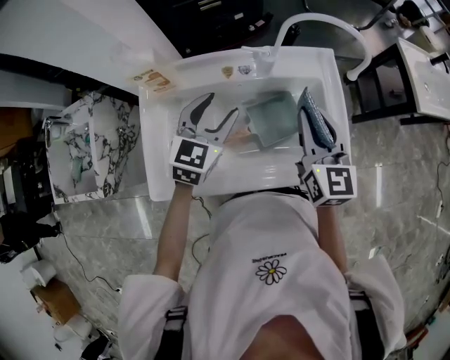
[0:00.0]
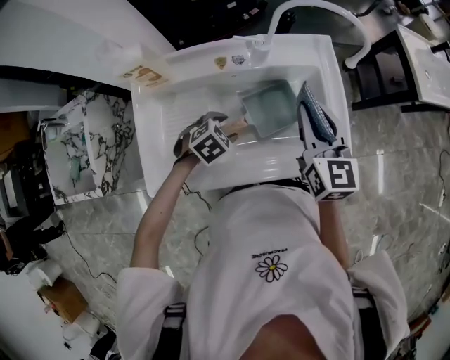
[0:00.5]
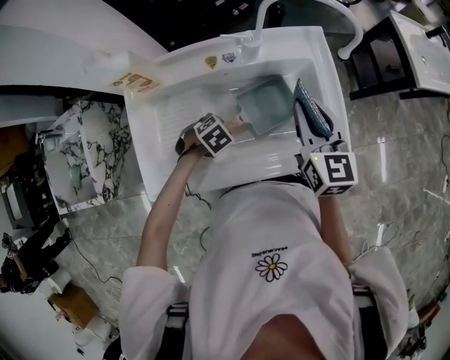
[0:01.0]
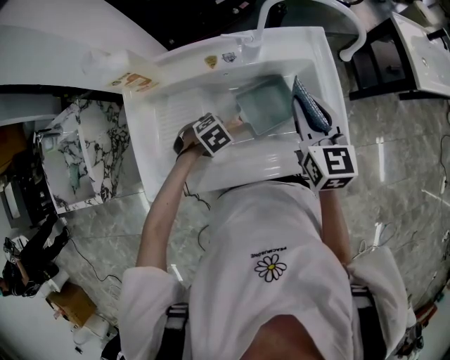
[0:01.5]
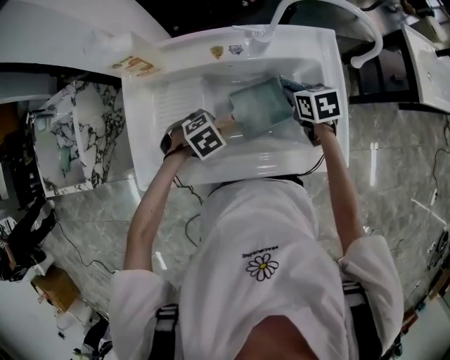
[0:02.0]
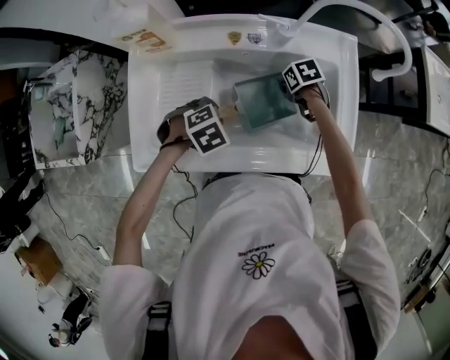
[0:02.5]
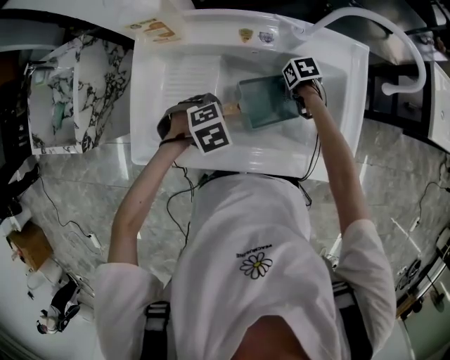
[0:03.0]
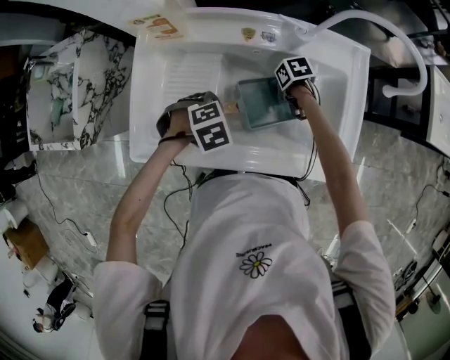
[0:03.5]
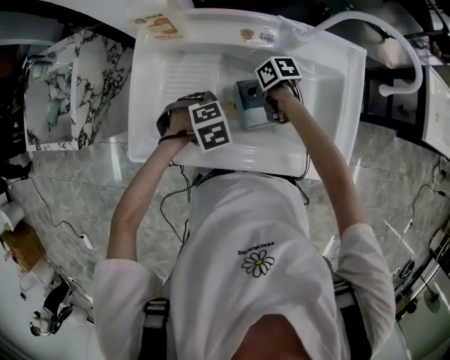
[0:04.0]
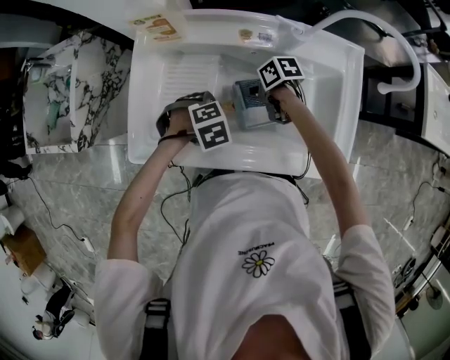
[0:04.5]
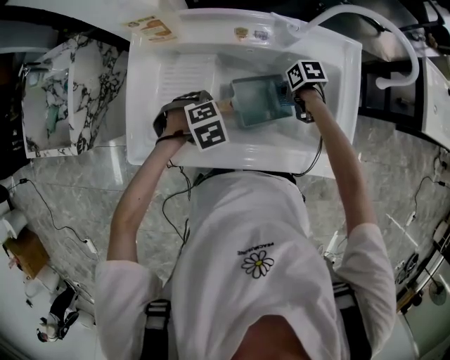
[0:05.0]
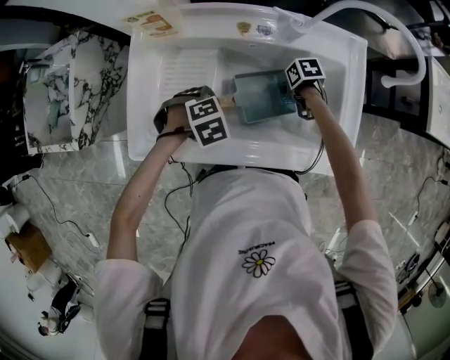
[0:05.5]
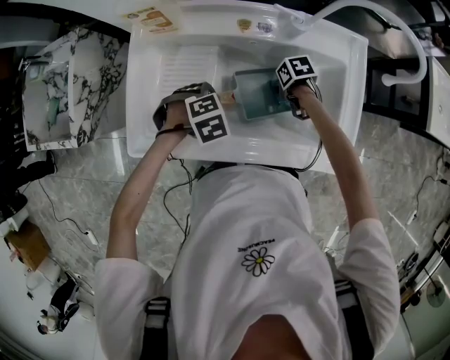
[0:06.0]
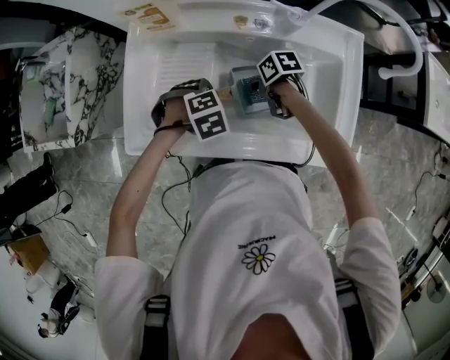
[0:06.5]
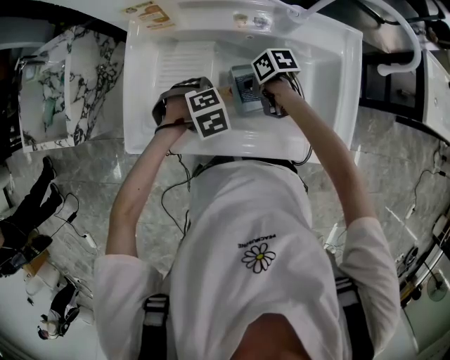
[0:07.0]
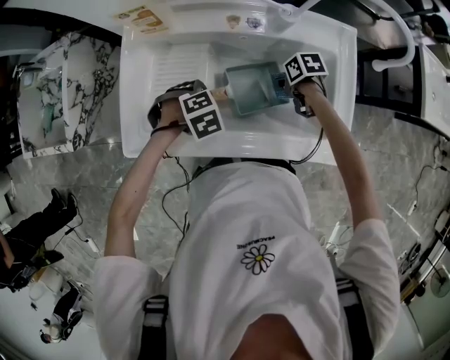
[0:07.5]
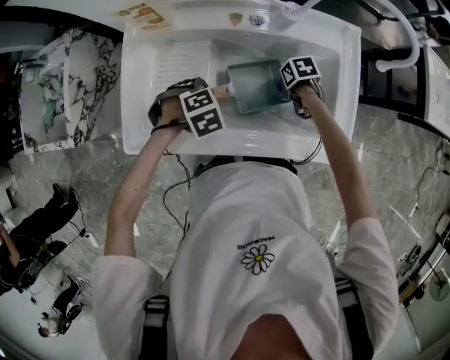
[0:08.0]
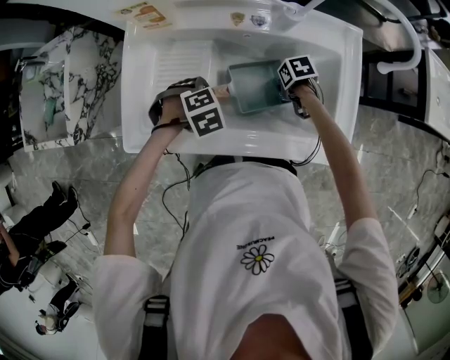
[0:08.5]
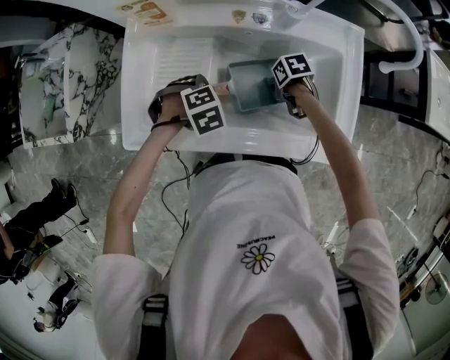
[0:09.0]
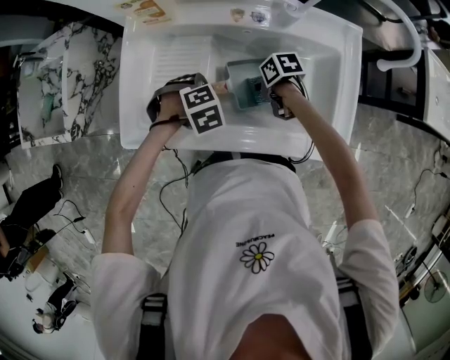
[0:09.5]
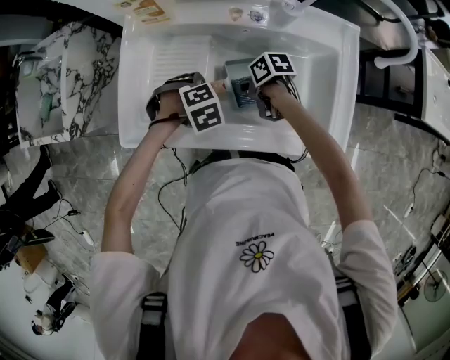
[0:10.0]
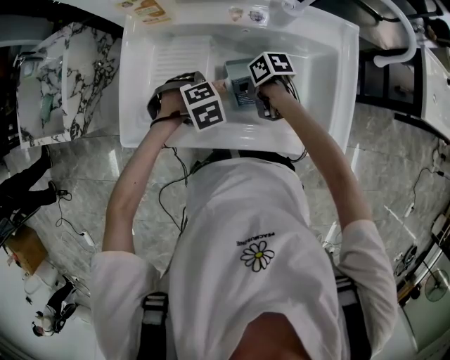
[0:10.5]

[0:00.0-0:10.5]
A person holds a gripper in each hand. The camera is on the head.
0:00.0 to 0:02.0: The two grippers go roughly 20 cm downward. The right gripper tips its fingers downward by some 50 degrees, while the left gripper tips its fingers downward by about 50 degrees, and closes its fingers.
0:02.0 to 0:04.0: The right gripper changes place by approximately 20 cm, and rotates about 40 degrees.
0:06.5 to 0:08.5: The right gripper shifts by some 15 cm, and changes its angle by some 20 degrees.
0:08.5 to 0:10.5: The right gripper moves roughly 15 cm, and changes its angle by roughly 30 degrees.

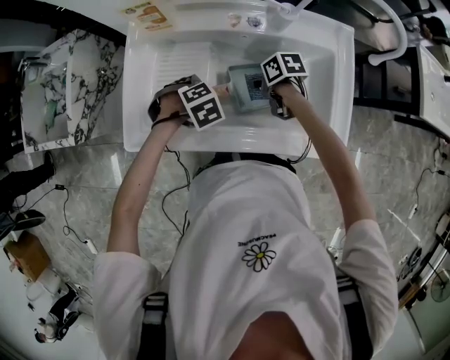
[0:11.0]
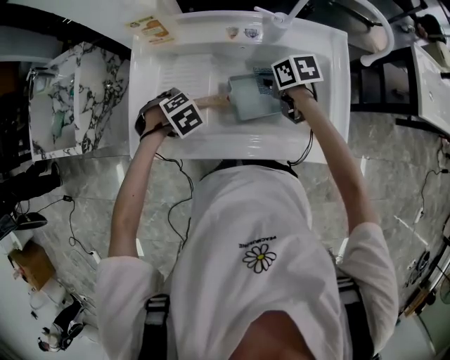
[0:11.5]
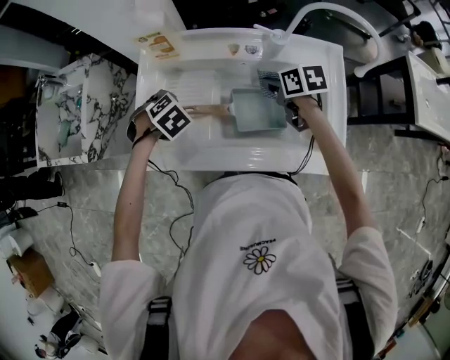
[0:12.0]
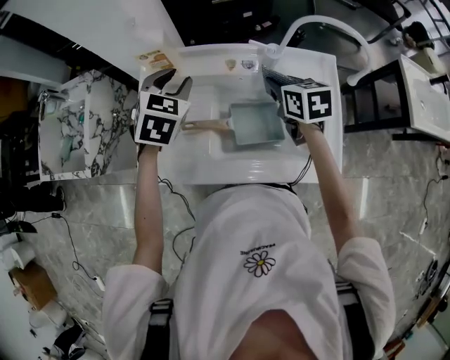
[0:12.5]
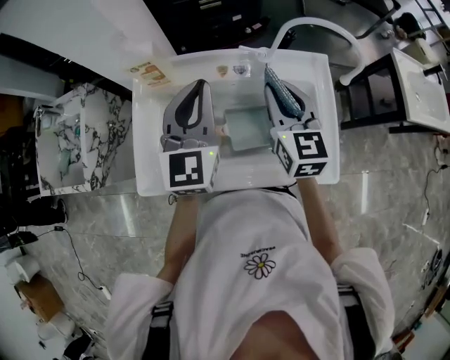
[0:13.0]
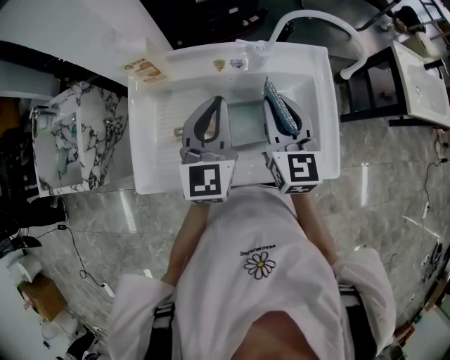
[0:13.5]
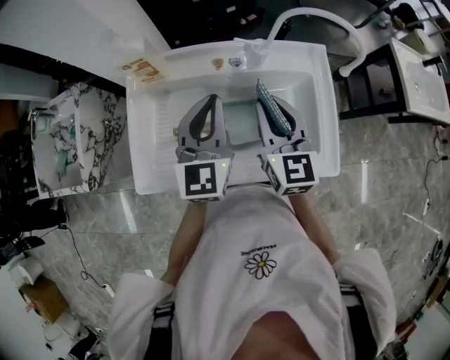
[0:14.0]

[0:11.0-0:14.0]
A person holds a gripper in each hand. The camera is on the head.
0:11.0 to 0:12.5: Both grippers travel together upward, roughly 20 cm. The left gripper points its fingers approximately 40 degrees further upward, while the right gripper swivels approximately 40 degrees.
0:12.5 to 0:14.0: The left gripper goes about 10 cm to the right and backward, points its fingers roughly 40 degrees further upward, and closes its fingers; the right gripper travels backward and upward by roughly 10 cm, and rotates roughly 30 degrees.

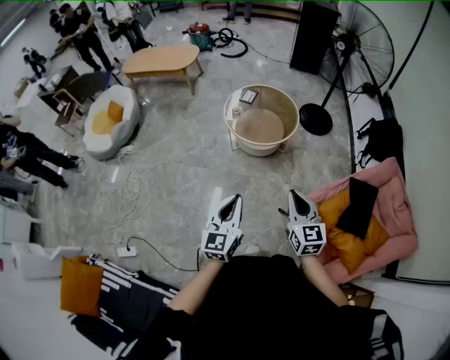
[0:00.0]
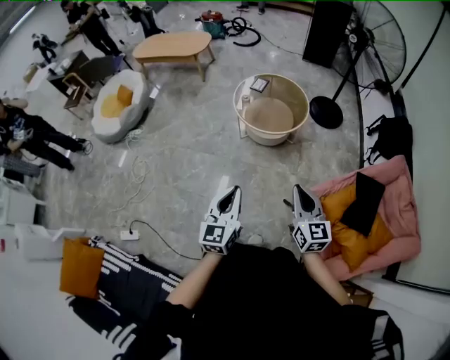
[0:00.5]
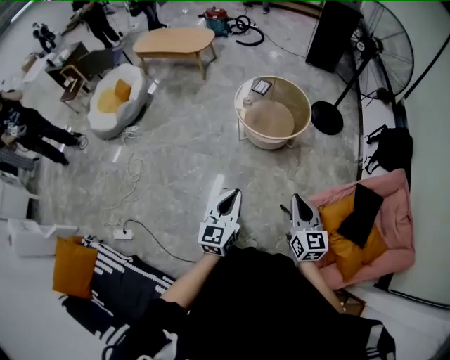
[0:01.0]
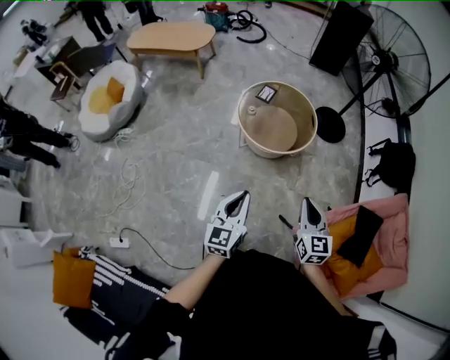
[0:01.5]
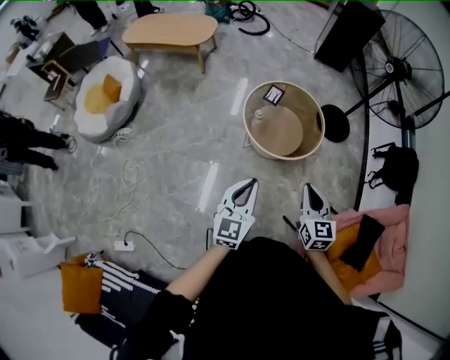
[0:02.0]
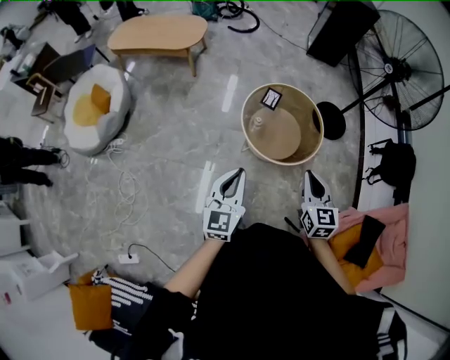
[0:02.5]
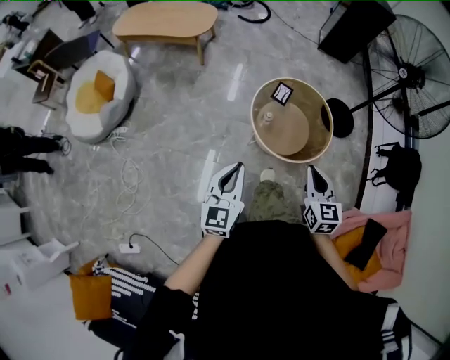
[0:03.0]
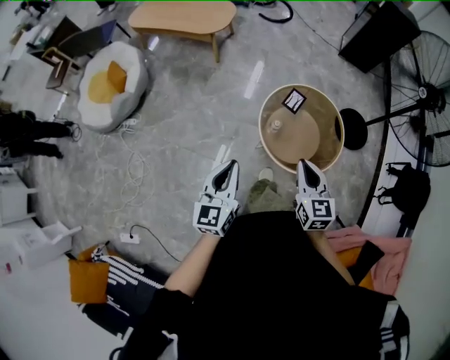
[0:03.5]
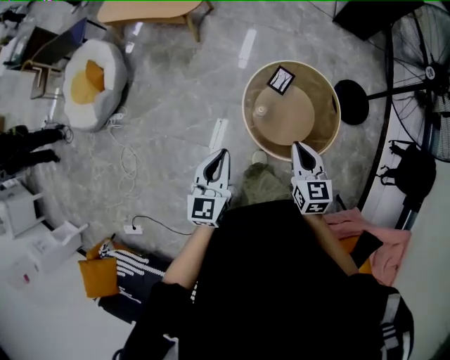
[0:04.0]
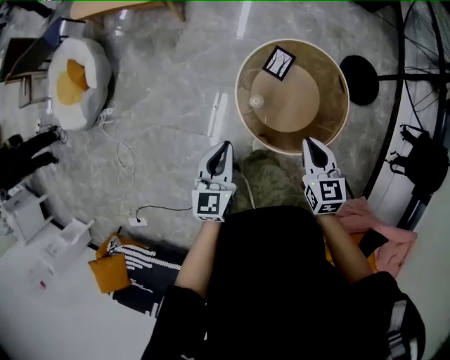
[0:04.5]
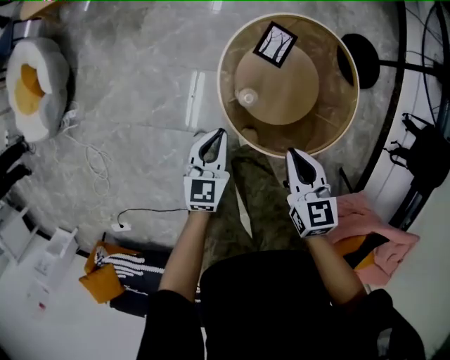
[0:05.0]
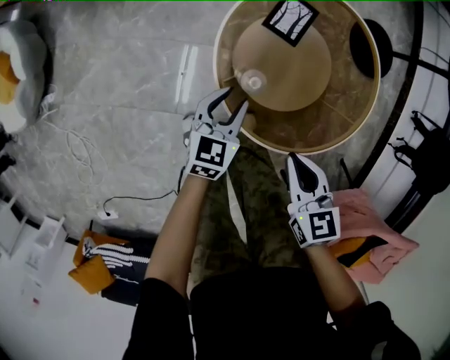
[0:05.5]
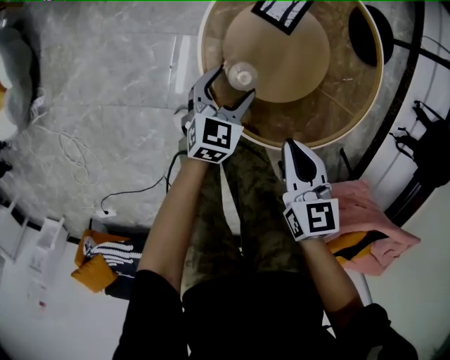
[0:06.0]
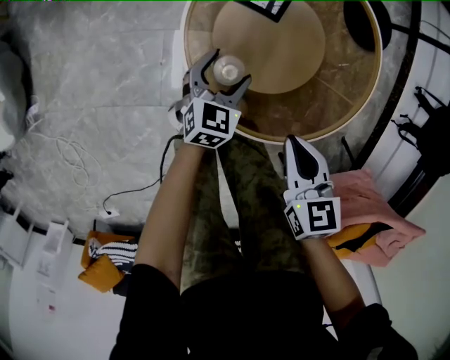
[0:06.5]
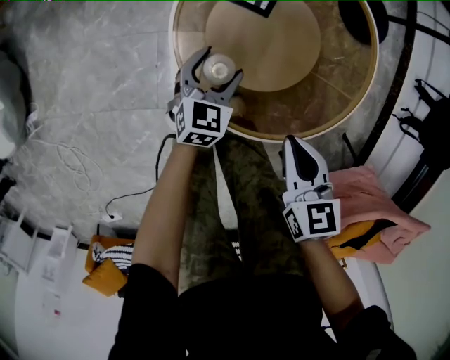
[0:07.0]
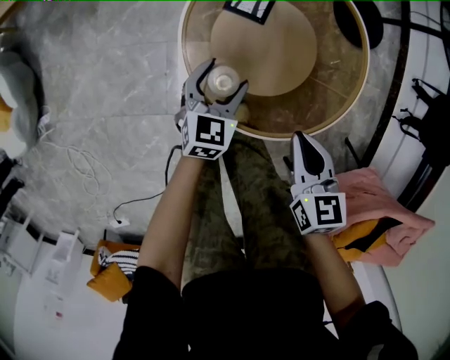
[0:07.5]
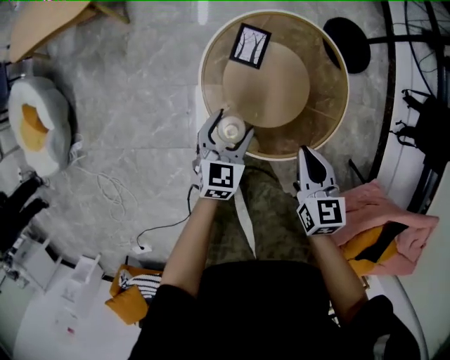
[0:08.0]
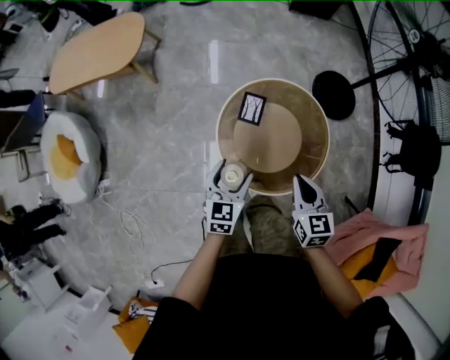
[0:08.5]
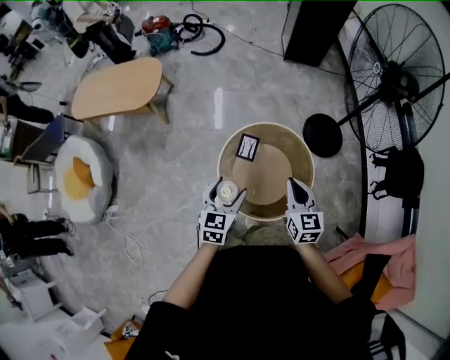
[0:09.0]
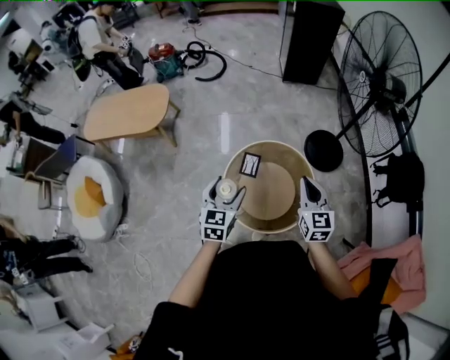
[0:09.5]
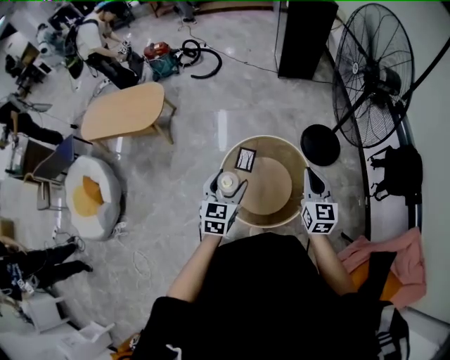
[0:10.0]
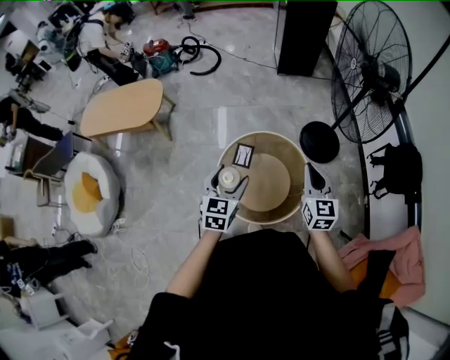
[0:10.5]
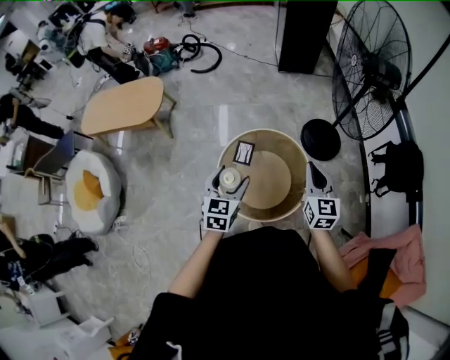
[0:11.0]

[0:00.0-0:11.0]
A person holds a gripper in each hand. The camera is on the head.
0:00.0 to 0:02.0: Both grippers travel together forward and to the left, about 35 cm.
0:02.0 to 0:03.5: Both grippers travel together forward and to the left, approximately 25 cm.
0:03.5 to 0:05.5: The grippers both shift downward and forward by approximately 60 cm. The left gripper changes its angle by approximately 40 degrees, while the right gripper rotates roughly 30 degrees.
0:05.5 to 0:07.5: The two grippers go about 5 cm to the right. The left gripper reaches approximately 10 cm downward, then returns, and opens.
0:07.5 to 0:09.0: The two grippers go roughly 50 cm upward. The right gripper swivels approximately 20 degrees.
0:09.0 to 0:11.0: The left gripper moves to the right and upward, some 10 cm; the right gripper heads to the right and upward, covering roughly 15 cm.

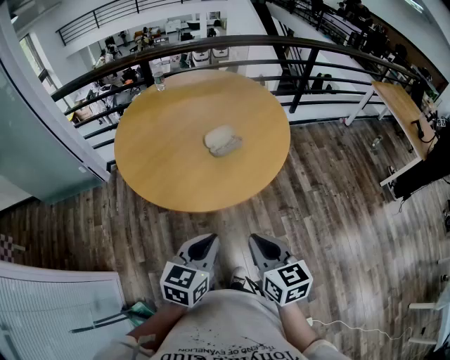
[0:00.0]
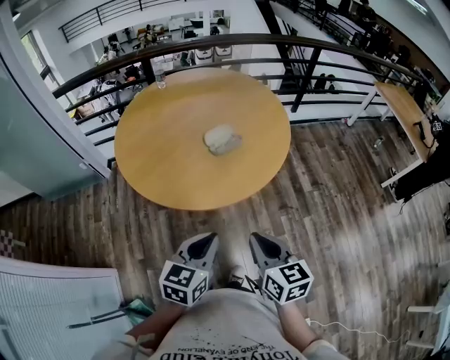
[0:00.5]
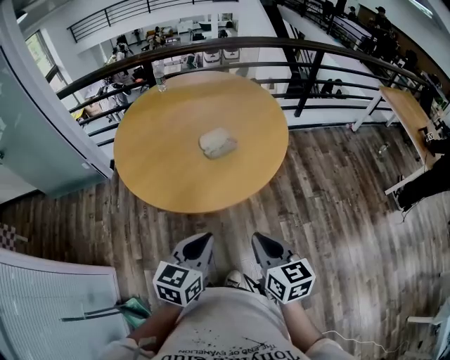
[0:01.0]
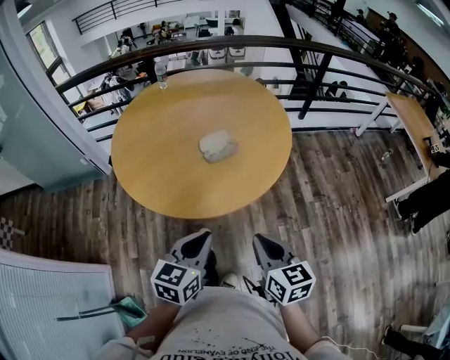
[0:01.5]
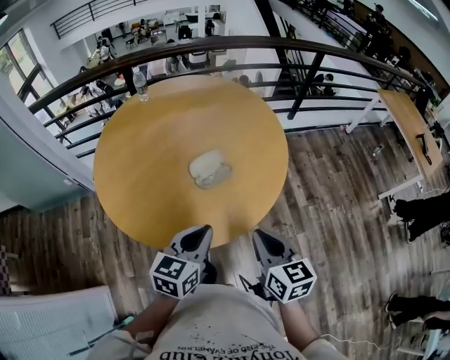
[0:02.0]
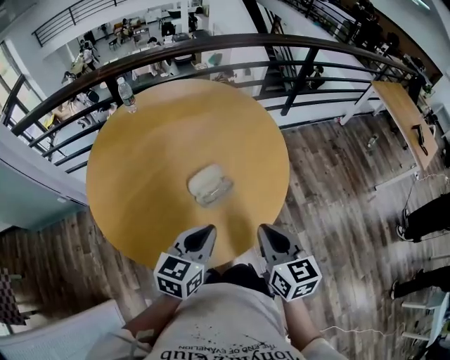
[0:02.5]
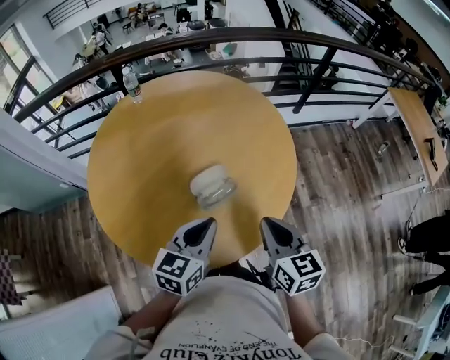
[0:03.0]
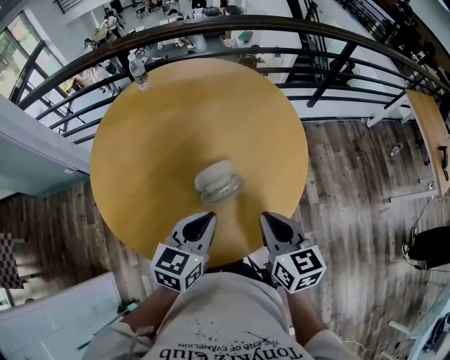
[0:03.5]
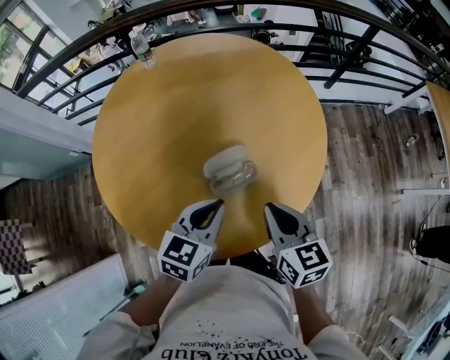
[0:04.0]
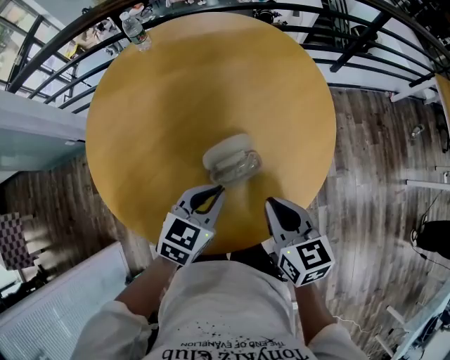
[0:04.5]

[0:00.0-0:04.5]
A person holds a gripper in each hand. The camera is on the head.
0:00.0 to 0:02.0: The two grippers go about 20 cm forward.
0:02.0 to 0:04.5: The left gripper heads forward and downward, covering about 25 cm, while the right gripper travels forward by some 20 cm.
